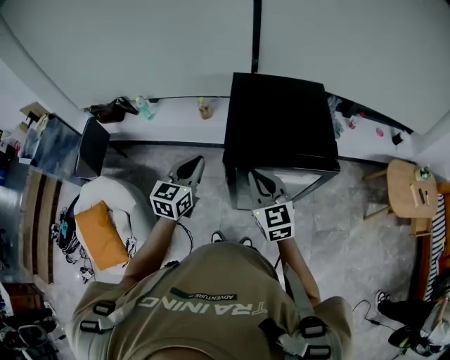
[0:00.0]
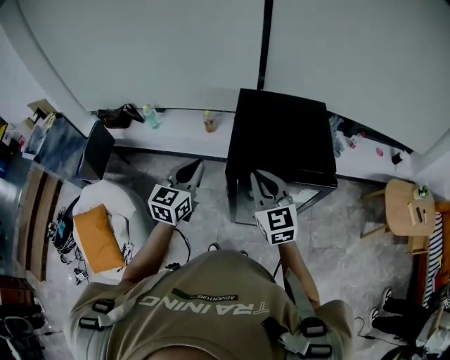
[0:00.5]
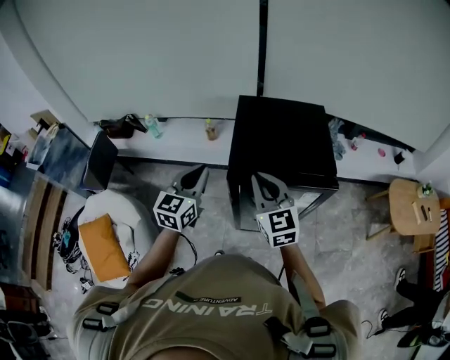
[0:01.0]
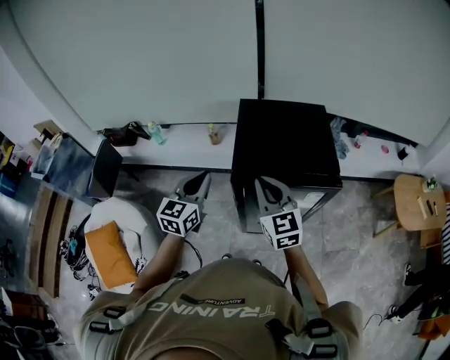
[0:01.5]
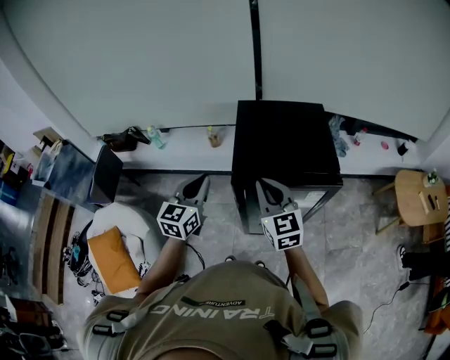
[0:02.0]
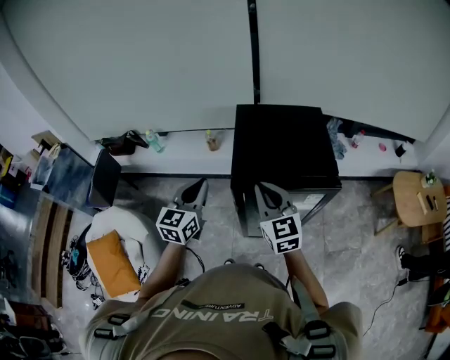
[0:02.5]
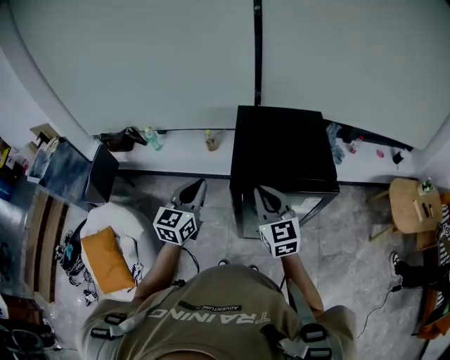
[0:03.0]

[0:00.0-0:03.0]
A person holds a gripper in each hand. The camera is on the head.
0:00.0 to 0:01.5: The right gripper is displaced upward by approximately 5 cm.
0:01.5 to 0:03.0: The two grippers keep their place.

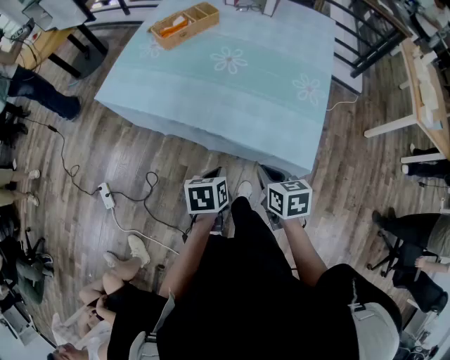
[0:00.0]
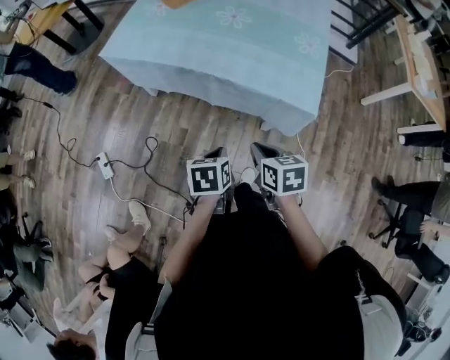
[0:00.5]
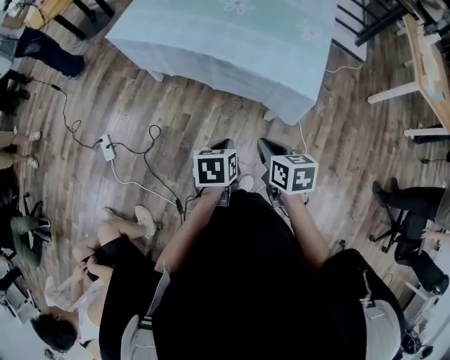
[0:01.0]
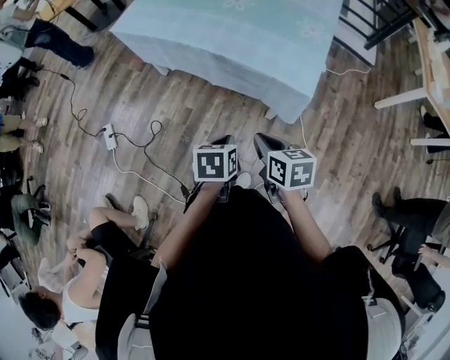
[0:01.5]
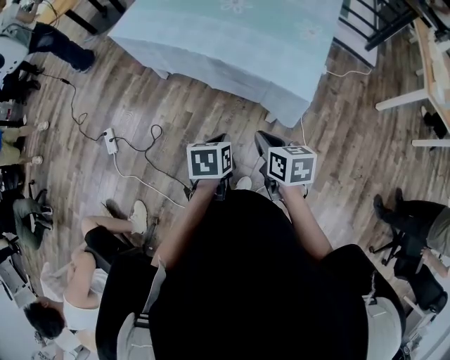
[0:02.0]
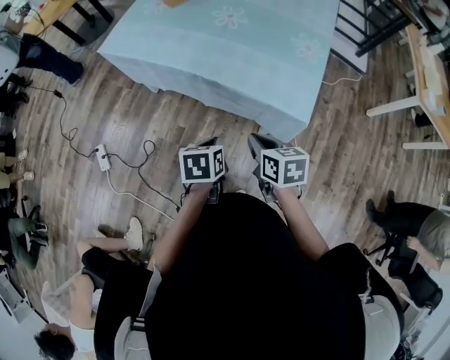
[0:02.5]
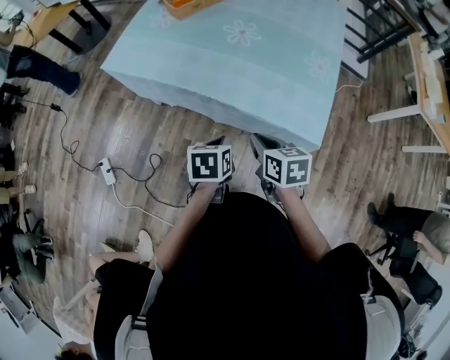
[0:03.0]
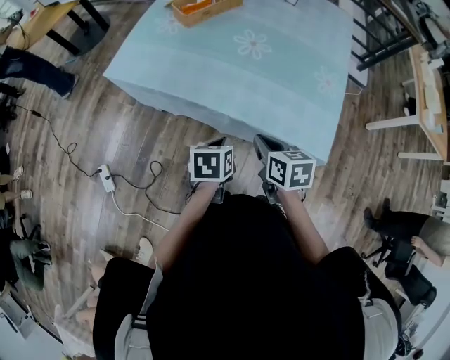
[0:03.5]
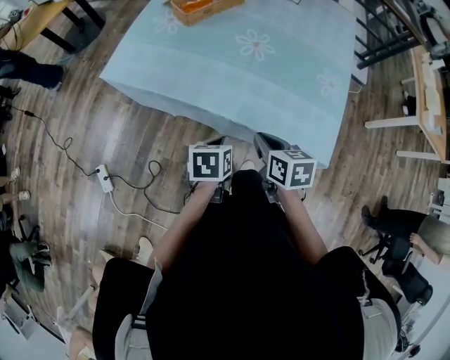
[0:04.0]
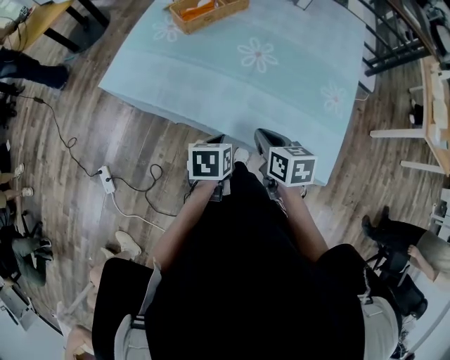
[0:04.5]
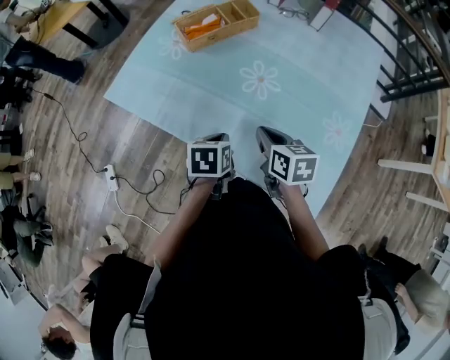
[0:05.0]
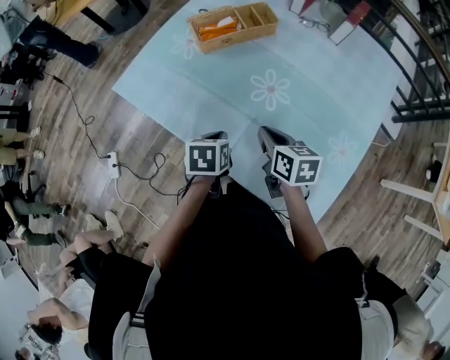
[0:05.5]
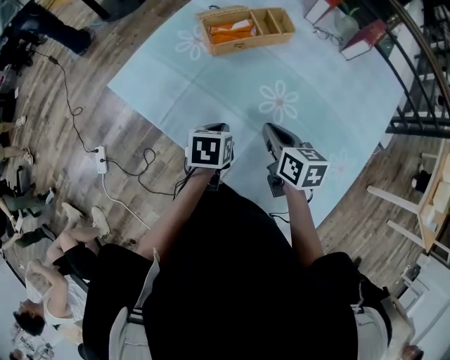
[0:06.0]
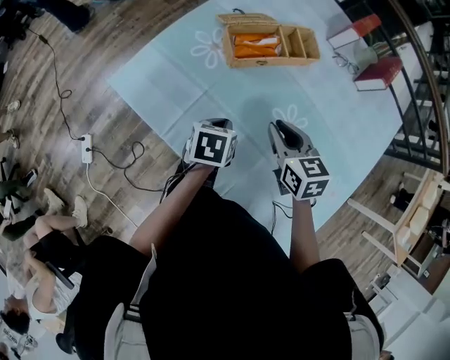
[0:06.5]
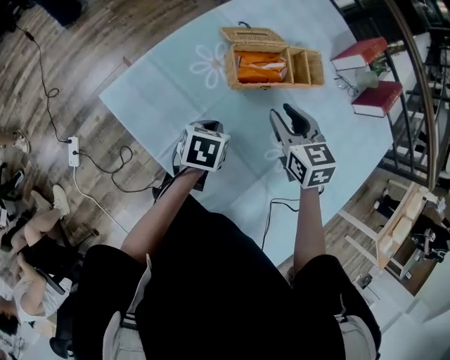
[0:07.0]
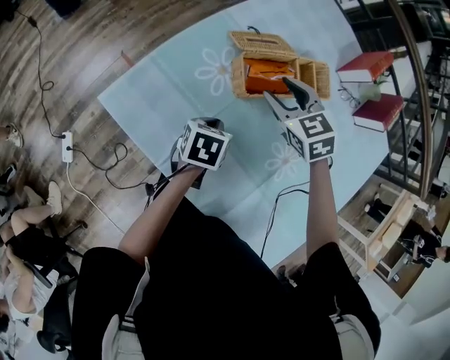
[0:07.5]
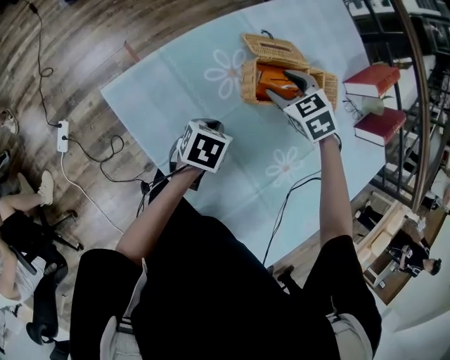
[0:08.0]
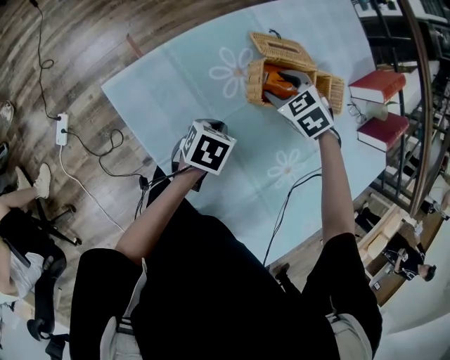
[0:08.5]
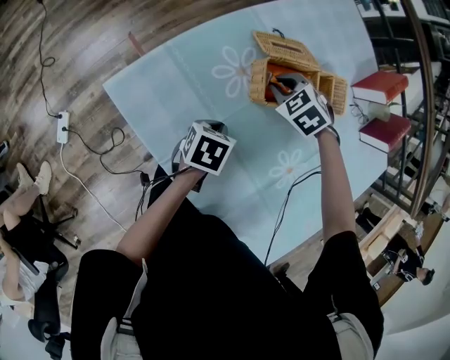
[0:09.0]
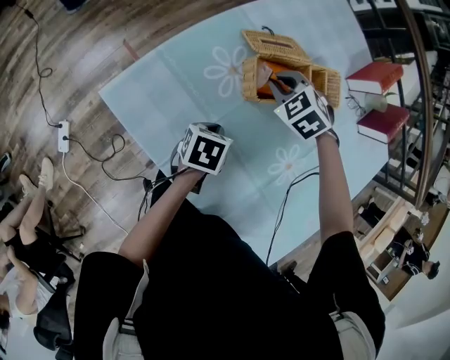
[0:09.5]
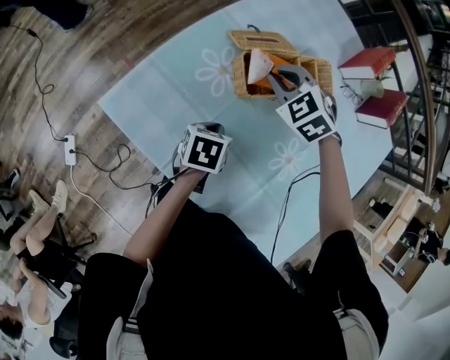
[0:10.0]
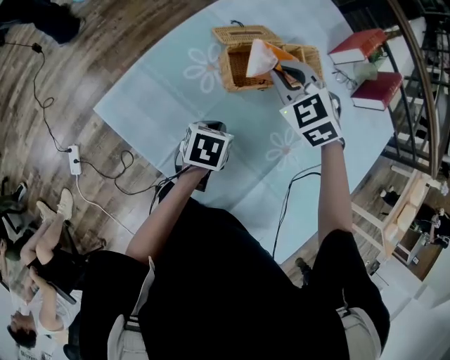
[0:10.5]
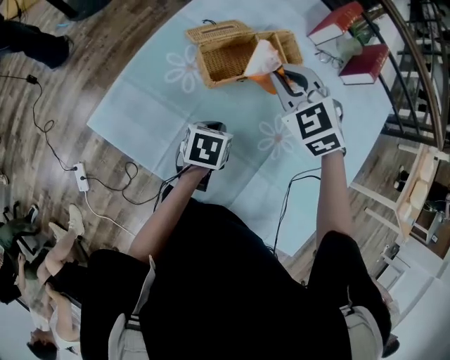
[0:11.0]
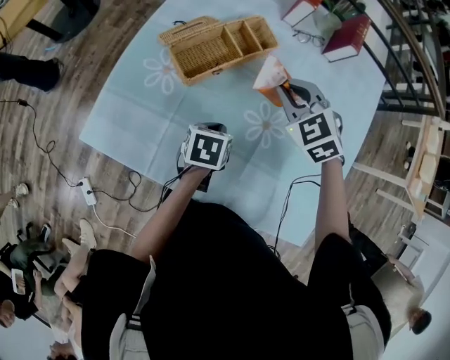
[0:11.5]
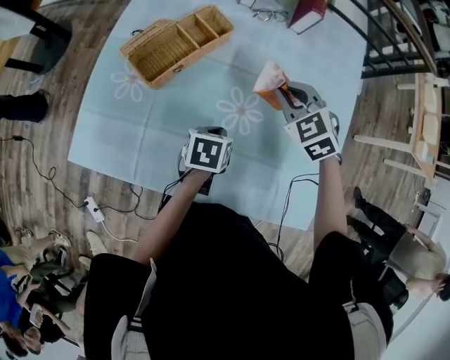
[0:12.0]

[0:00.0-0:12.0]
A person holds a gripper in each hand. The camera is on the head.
0:00.0 to 0:02.0: The two grippers go about 15 cm backward.
0:02.0 to 0:04.0: Both grippers move forward and to the left, approximately 30 cm.
0:04.0 to 0:06.0: The grippers both shift forward by roughly 25 cm.
0:06.0 to 0:08.0: The right gripper shifts about 35 cm forward and to the left, twists roughly 60 degrees counterclockwise, seen from behind, and opens its fingers. Meanwhile the left gripper shifts some 20 cm forward, to the left and downward.
0:08.0 to 0:10.0: The right gripper closes its fingers.
0:10.0 to 0:12.0: The left gripper shifts by about 20 cm, and changes its angle by about 30 degrees; the right gripper shifts by about 35 cm, and changes its angle by about 40 degrees.

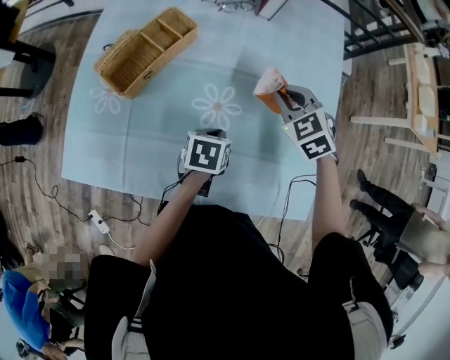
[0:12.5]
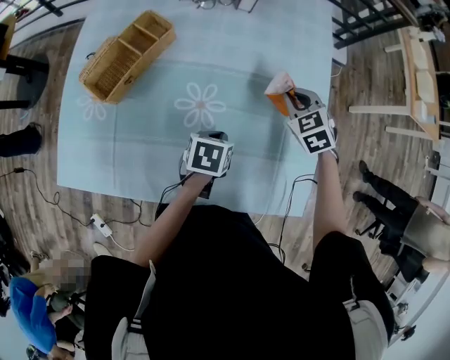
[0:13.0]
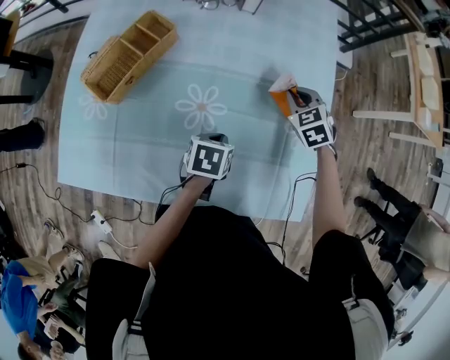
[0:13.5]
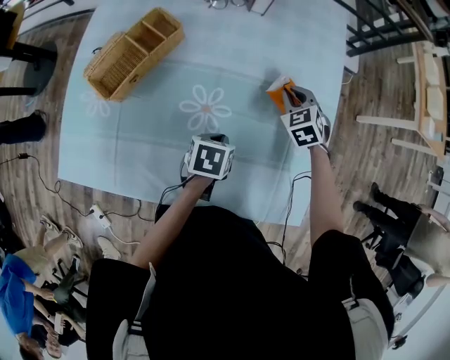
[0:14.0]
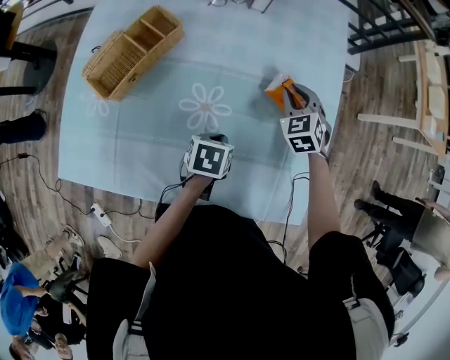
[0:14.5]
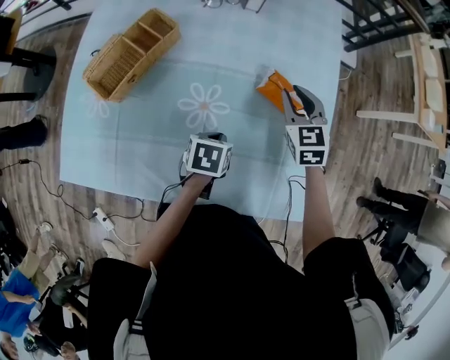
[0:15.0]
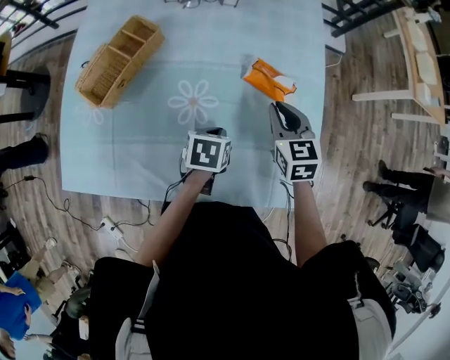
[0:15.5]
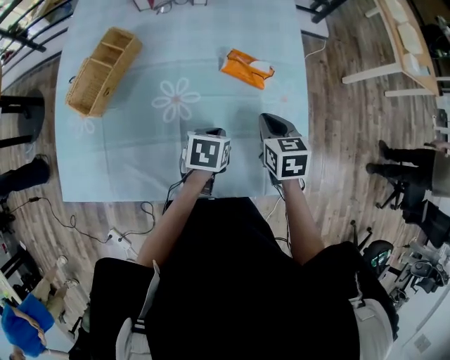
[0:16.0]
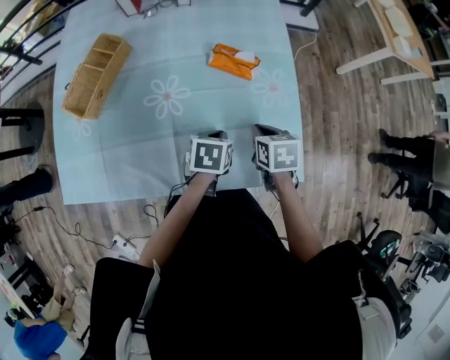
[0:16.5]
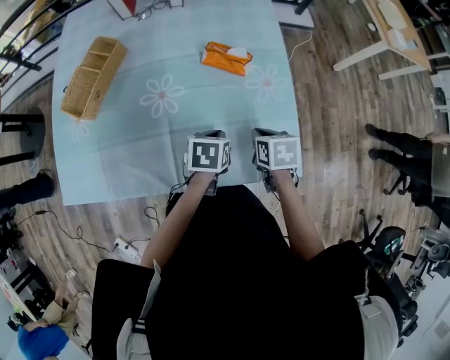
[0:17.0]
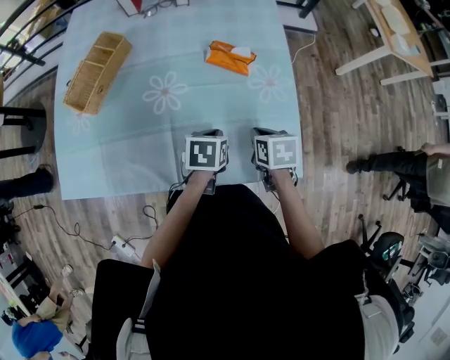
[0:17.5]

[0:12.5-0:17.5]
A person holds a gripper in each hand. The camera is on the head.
0:12.5 to 0:15.0: The right gripper is displaced to the right by approximately 10 cm, rotates approximately 30 degrees, and opens up. The left gripper travels to the right by some 5 cm.
0:15.0 to 0:17.5: The right gripper travels backward and to the right by about 25 cm, rolls clockwise, seen from behind, by some 40 degrees, and closes up; the left gripper heads to the right and backward, covering approximately 15 cm.

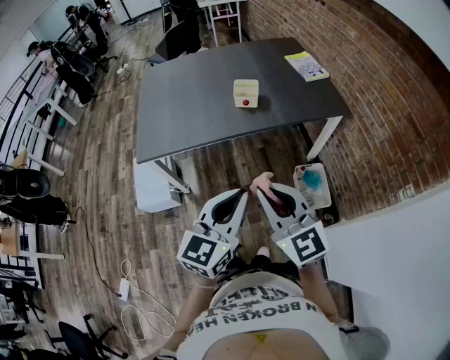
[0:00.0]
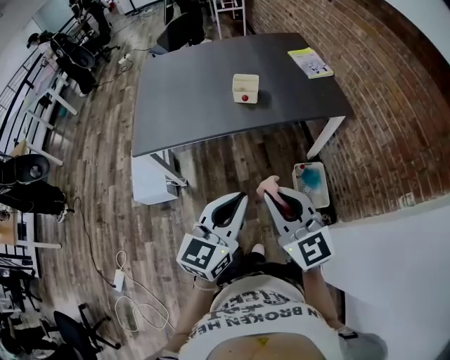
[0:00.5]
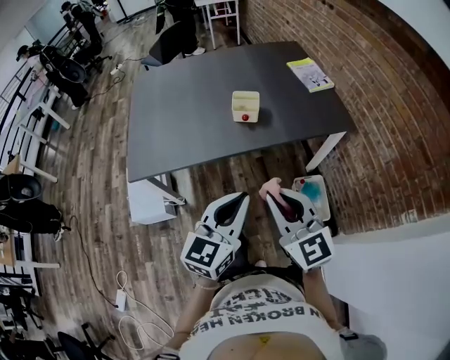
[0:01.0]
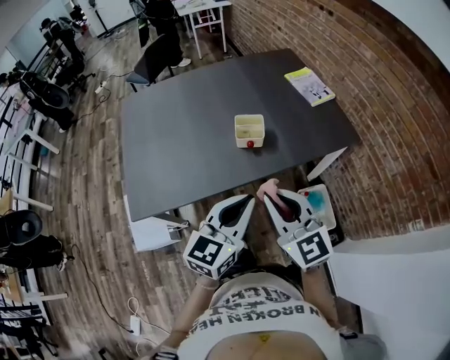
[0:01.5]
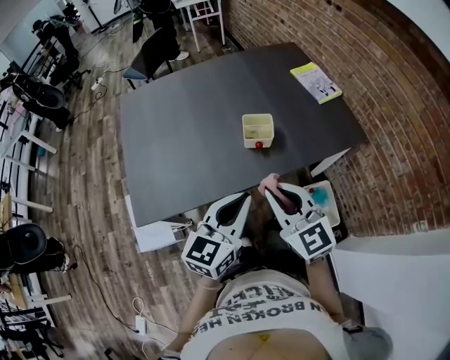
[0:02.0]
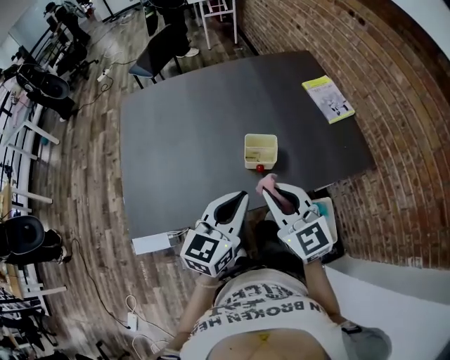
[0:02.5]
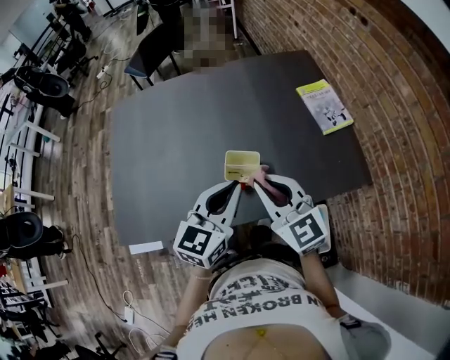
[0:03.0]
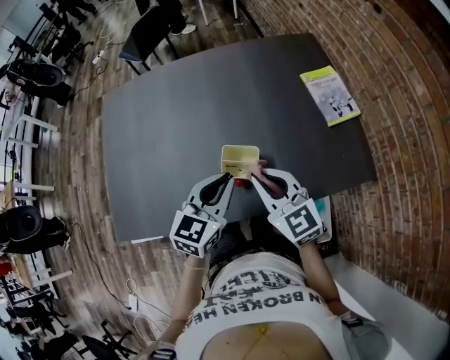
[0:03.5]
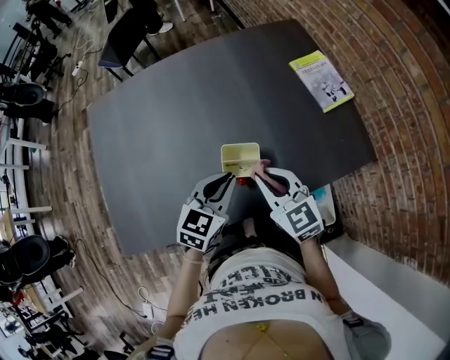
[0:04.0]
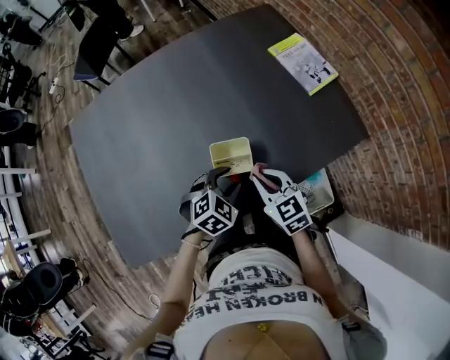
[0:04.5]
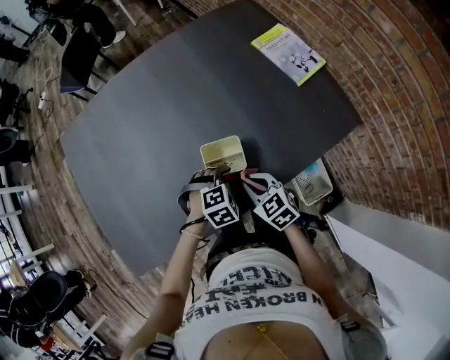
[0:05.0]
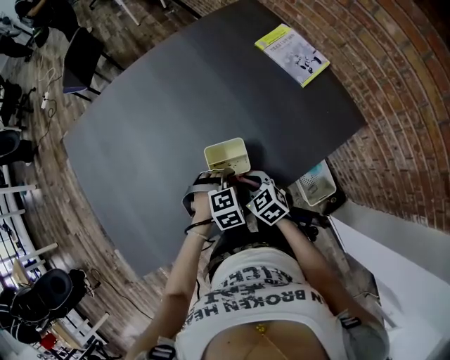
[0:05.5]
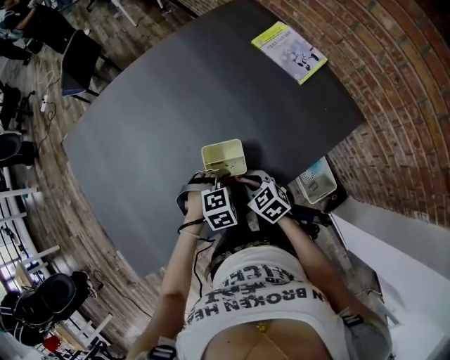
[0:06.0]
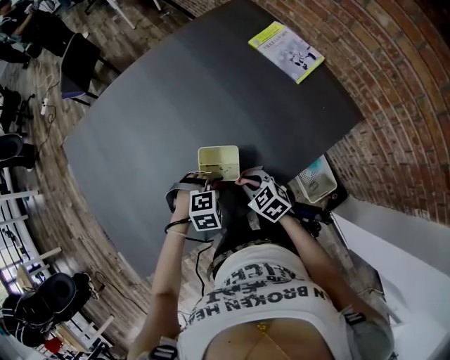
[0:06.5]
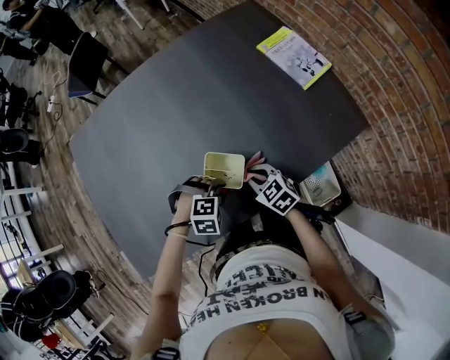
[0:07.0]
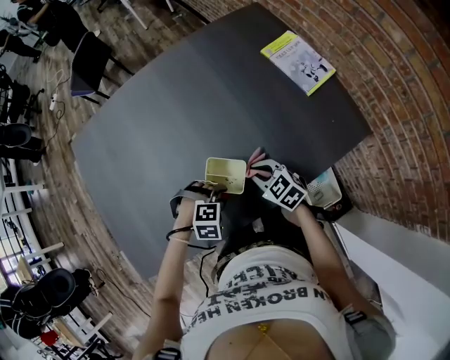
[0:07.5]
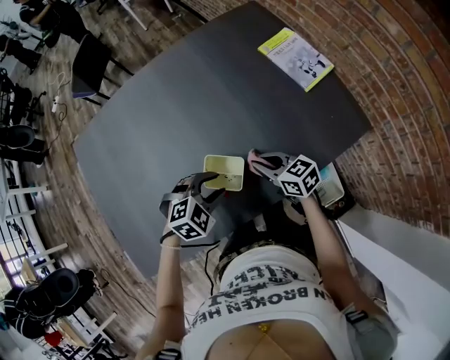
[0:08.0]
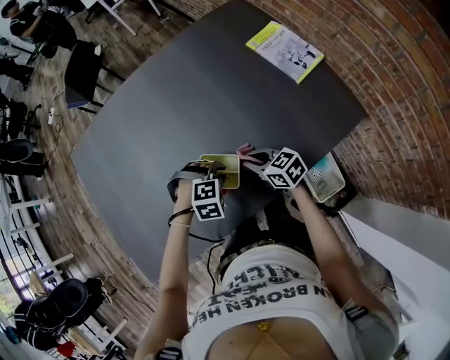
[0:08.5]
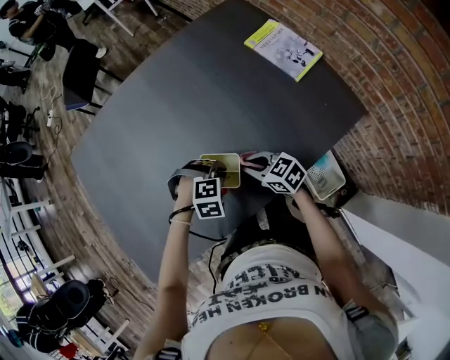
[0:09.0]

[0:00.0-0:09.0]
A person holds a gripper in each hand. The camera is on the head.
0:00.0 to 0:02.0: Both grippers move forward, roughly 30 cm.
0:02.0 to 0:04.5: Both grippers move forward and downward, approximately 30 cm. The left gripper tilts its fingers about 40 degrees downward, and opens up. Meanwhile the right gripper turns by some 30 degrees.
0:04.5 to 0:07.0: The two grippers go some 10 cm downward. The left gripper rotates some 40 degrees.
0:07.0 to 0:09.0: The left gripper reaches some 10 cm upward, then returns, and closes up.
